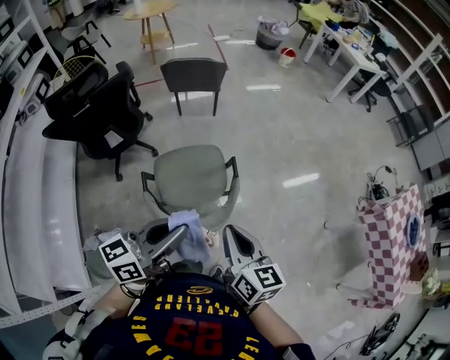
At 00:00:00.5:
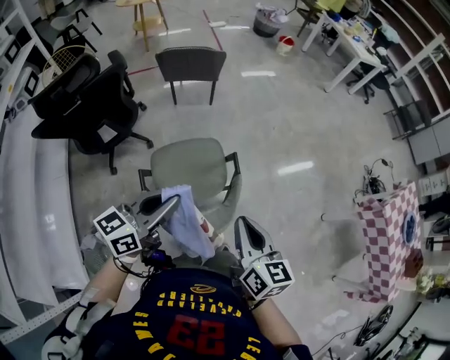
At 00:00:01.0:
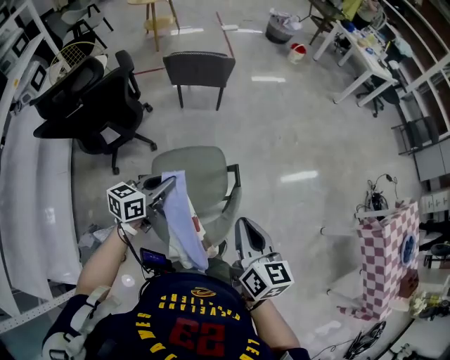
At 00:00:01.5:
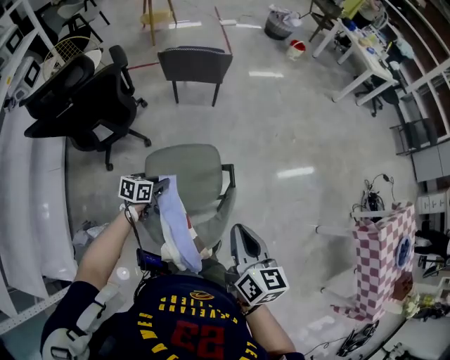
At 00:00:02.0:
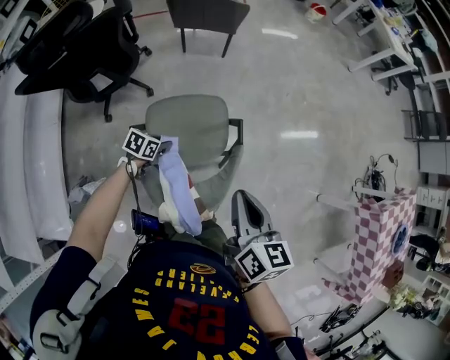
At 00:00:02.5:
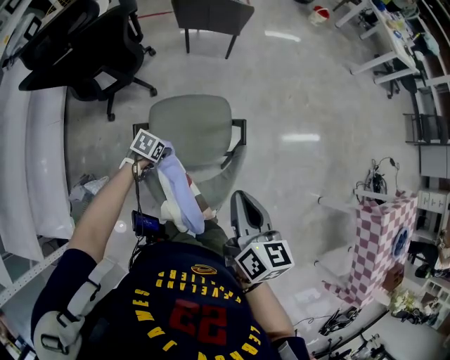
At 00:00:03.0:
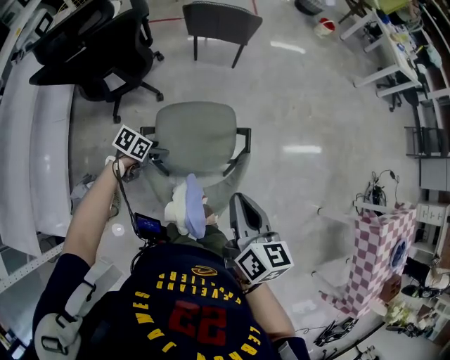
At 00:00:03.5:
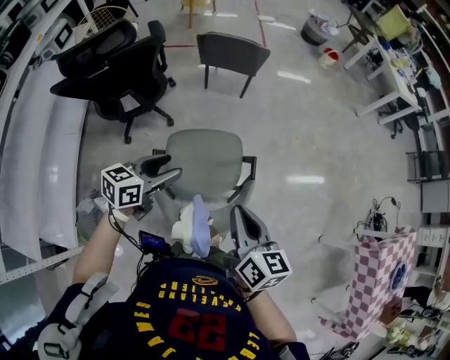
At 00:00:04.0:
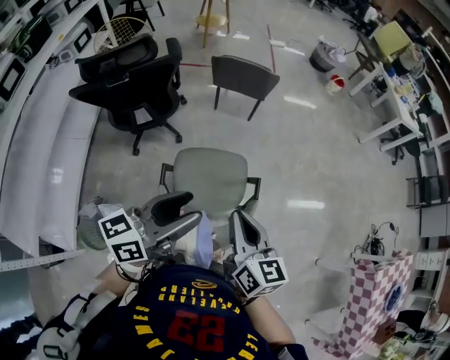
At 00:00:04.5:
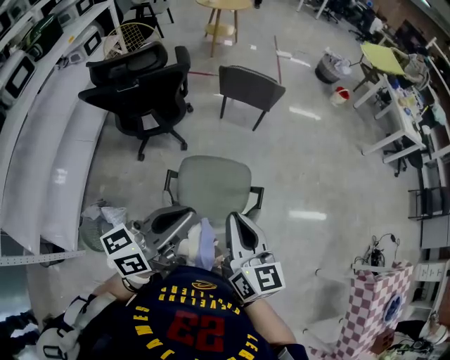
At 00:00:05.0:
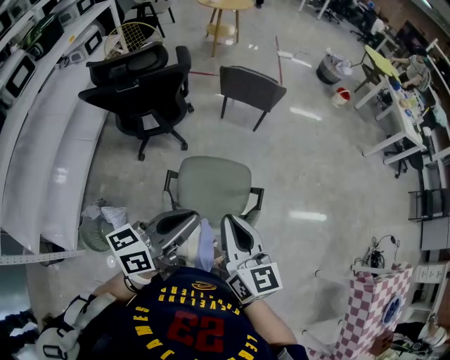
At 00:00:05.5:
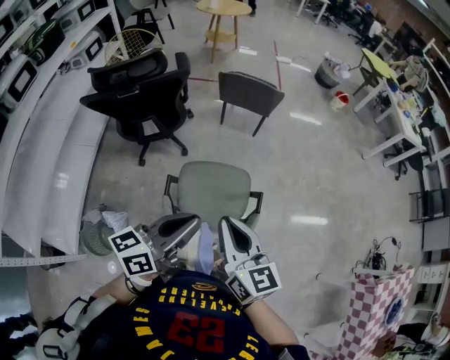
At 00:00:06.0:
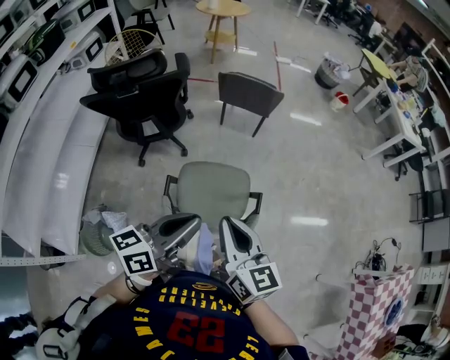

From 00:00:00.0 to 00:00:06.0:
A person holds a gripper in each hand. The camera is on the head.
From 00:00:00.0 to 00:00:02.0: The right gripper travels forward by some 10 cm; the left gripper heads downward and forward, covering about 50 cm, and angles its fingers downward, by approximately 50 degrees.
From 00:00:02.0 to 00:00:04.0: The right gripper moves to the left and upward, roughly 10 cm; the left gripper travels upward by some 40 cm, tips its fingers upward by some 50 degrees, and opens its fingers.
From 00:00:04.0 to 00:00:06.0: The left gripper closes its fingers.

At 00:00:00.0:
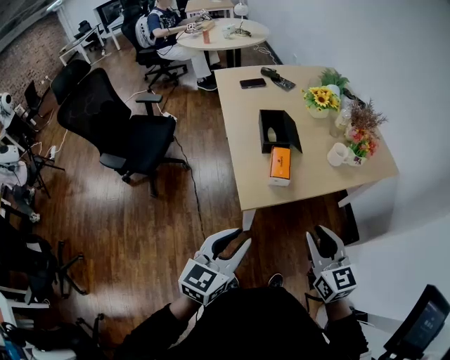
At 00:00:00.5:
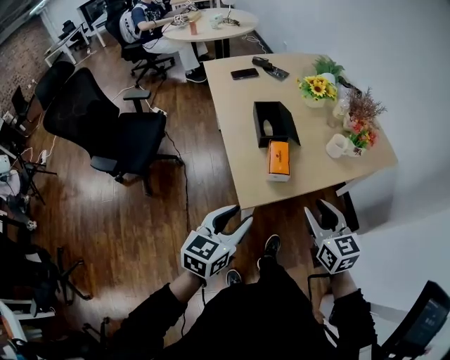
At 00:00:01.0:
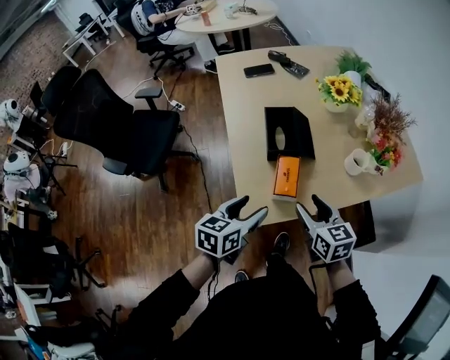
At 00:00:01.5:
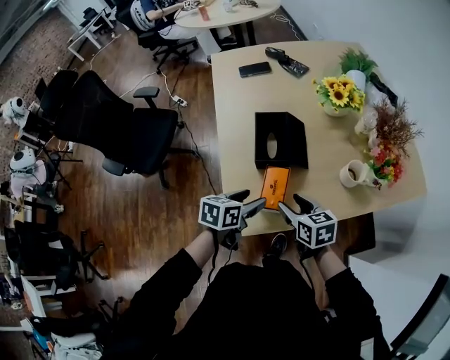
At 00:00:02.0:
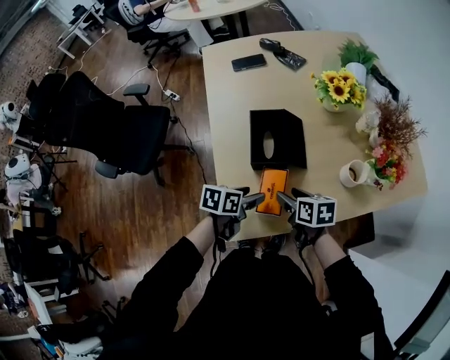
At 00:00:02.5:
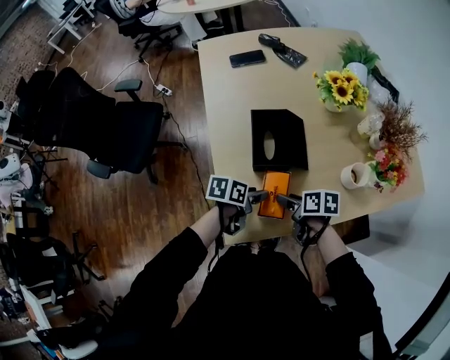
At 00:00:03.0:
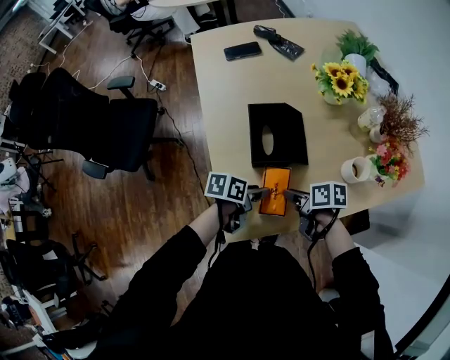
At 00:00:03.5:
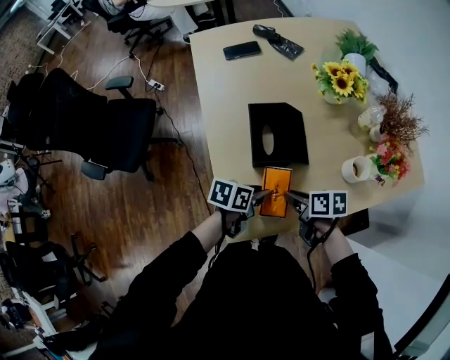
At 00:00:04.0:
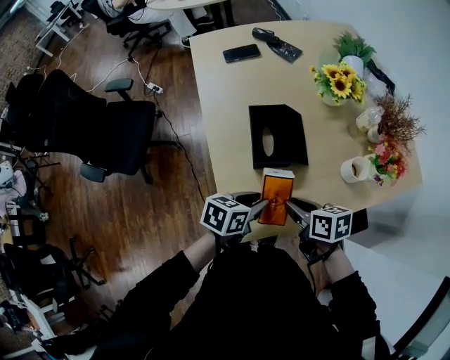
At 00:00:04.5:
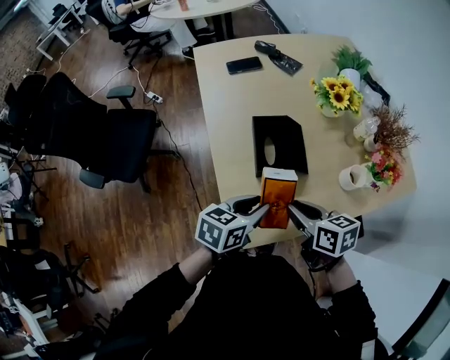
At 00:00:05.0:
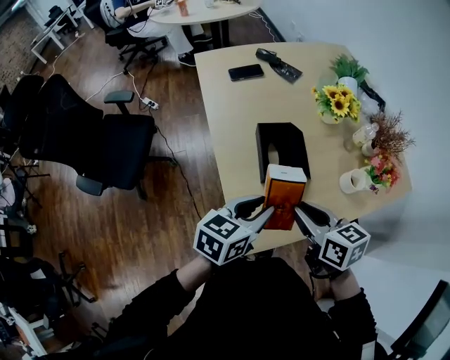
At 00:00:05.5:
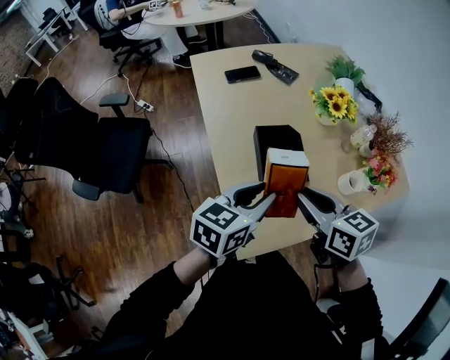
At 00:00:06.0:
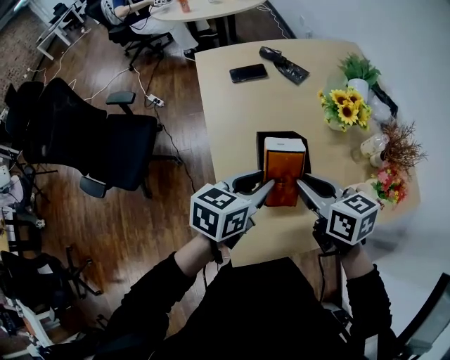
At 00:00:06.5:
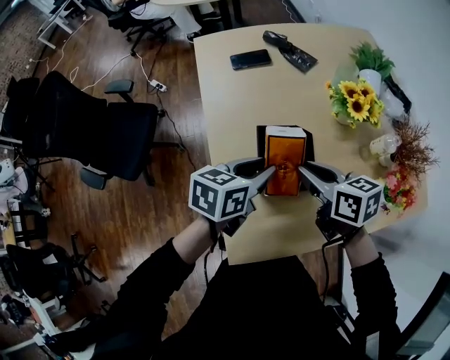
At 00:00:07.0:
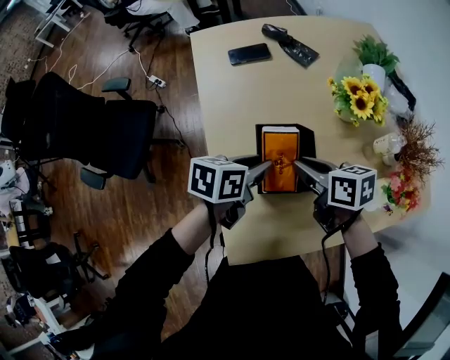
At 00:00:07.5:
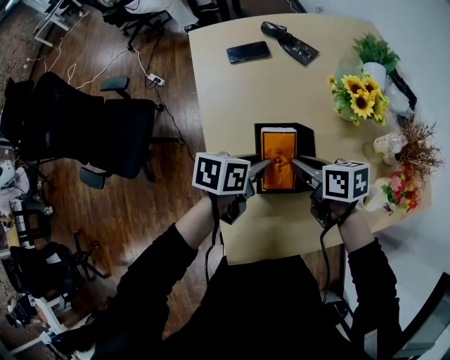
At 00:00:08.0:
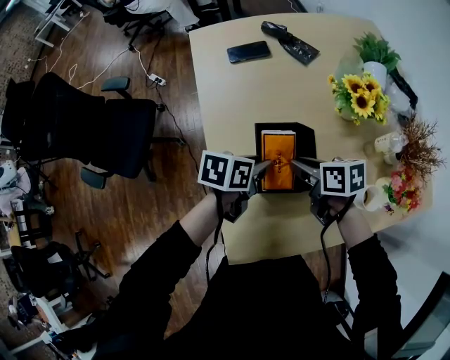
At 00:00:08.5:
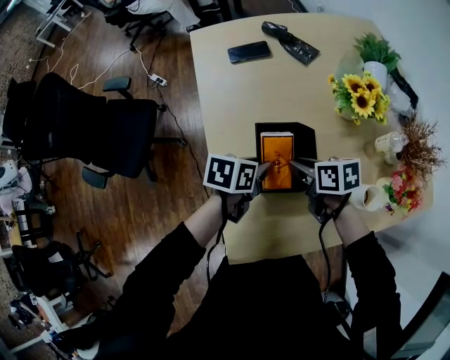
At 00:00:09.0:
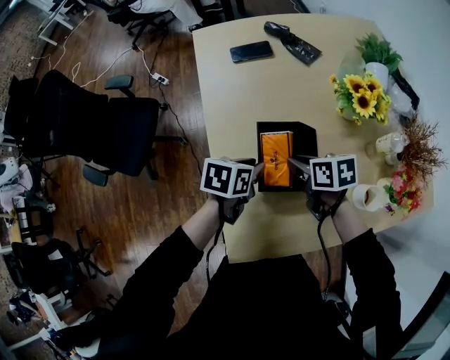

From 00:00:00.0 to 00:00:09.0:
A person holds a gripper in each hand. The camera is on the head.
From 00:00:00.0 to 00:00:02.0: The two grippers go approximately 40 cm forward and downward. The right gripper turns by about 50 degrees, and opens up; the left gripper swivels about 50 degrees, and opens up.
From 00:00:02.0 to 00:00:04.5: Both grippers travel together upward, some 10 cm. The right gripper closes, while the left gripper closes its fingers.
From 00:00:04.5 to 00:00:07.0: The grippers both shift forward by about 20 cm.
From 00:00:07.0 to 00:00:09.0: Both grippers move downward, some 5 cm.

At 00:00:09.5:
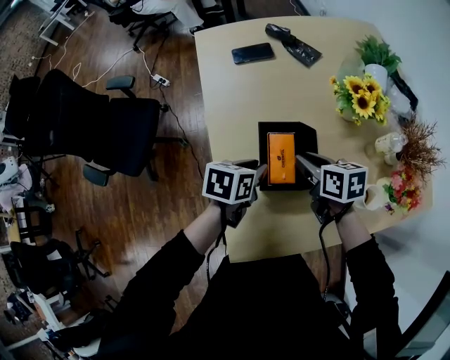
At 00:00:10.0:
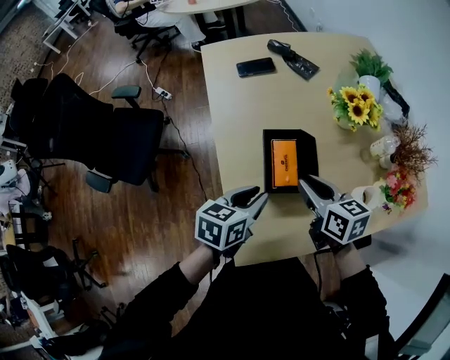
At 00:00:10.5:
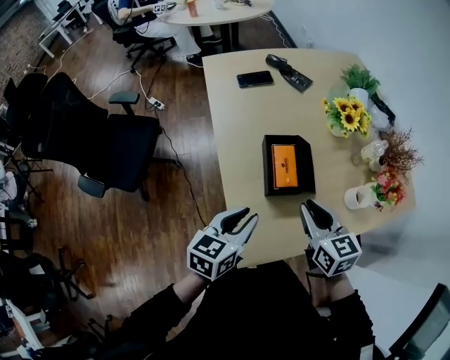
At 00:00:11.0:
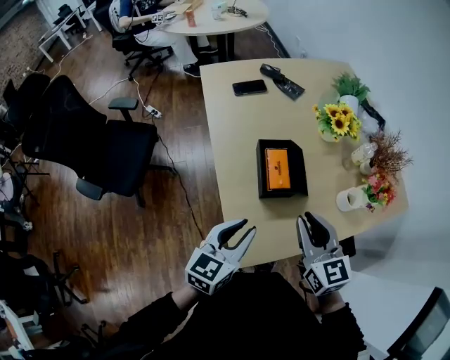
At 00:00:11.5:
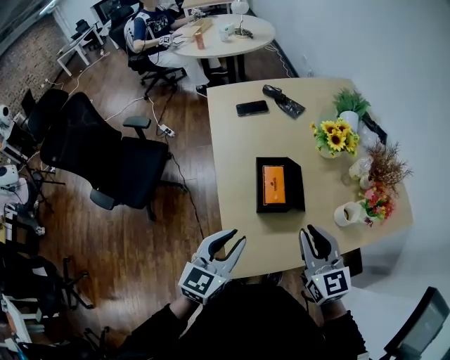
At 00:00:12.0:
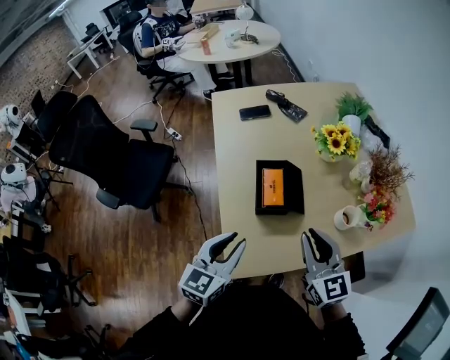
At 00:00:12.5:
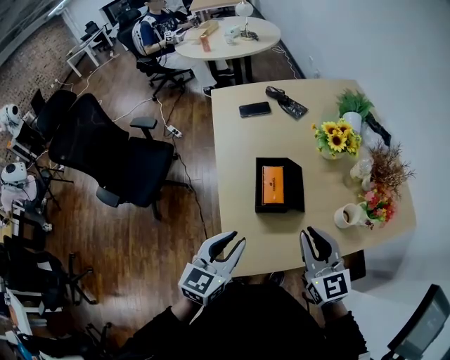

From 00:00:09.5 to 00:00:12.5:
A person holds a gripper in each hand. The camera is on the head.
From 00:00:09.5 to 00:00:11.0: The two grippers go approximately 20 cm backward and upward. The left gripper turns by approximately 40 degrees. Meanwhile the right gripper changes its angle by approximately 40 degrees.
From 00:00:11.0 to 00:00:12.5: The right gripper travels to the right by about 5 cm.

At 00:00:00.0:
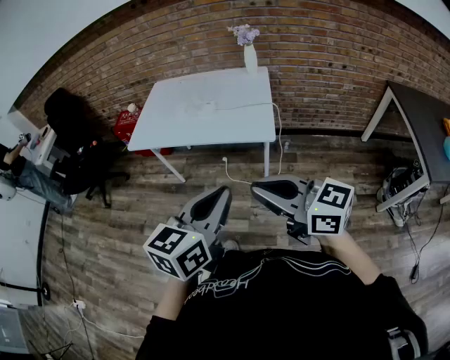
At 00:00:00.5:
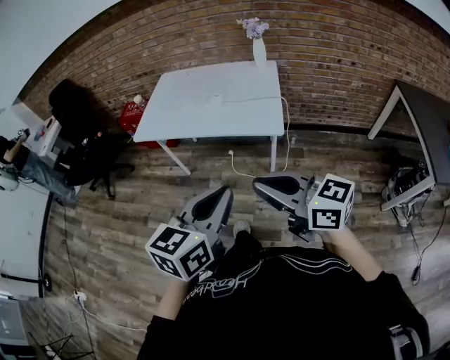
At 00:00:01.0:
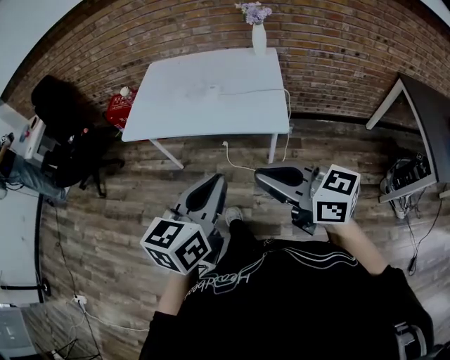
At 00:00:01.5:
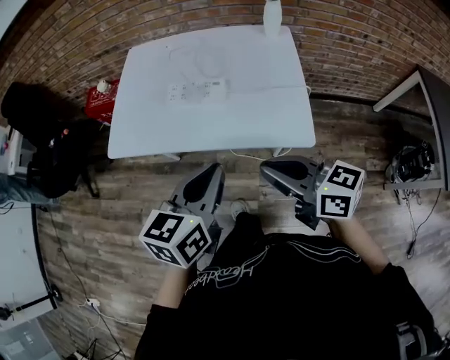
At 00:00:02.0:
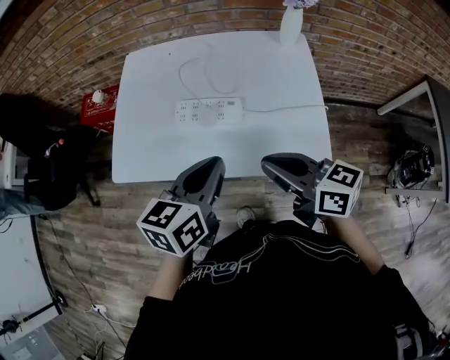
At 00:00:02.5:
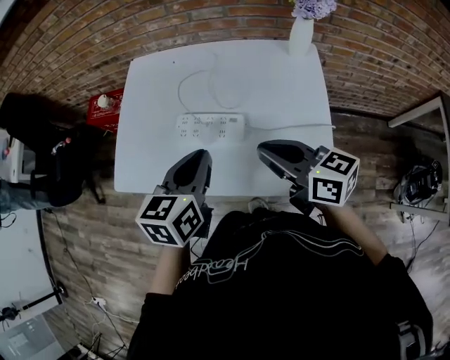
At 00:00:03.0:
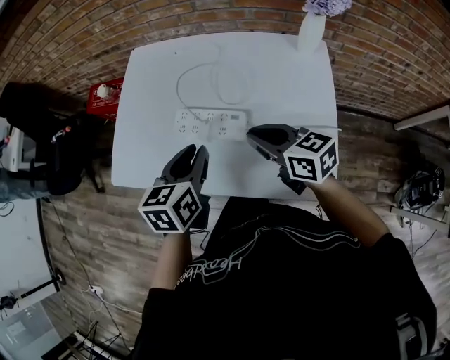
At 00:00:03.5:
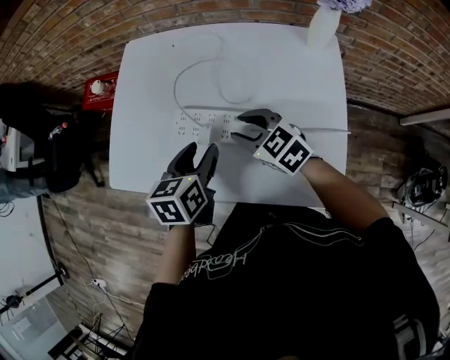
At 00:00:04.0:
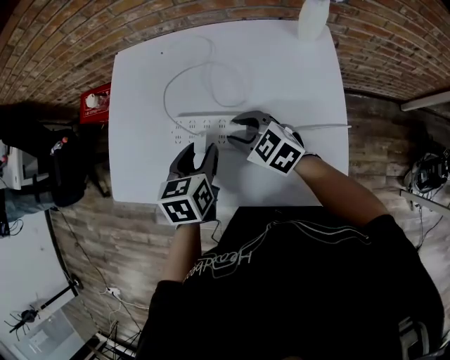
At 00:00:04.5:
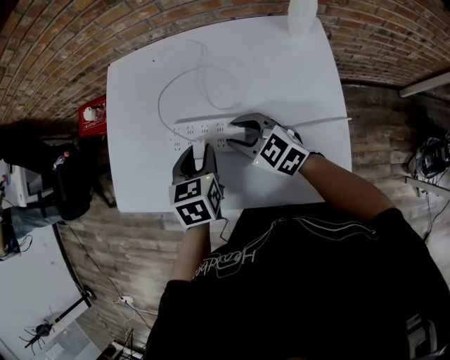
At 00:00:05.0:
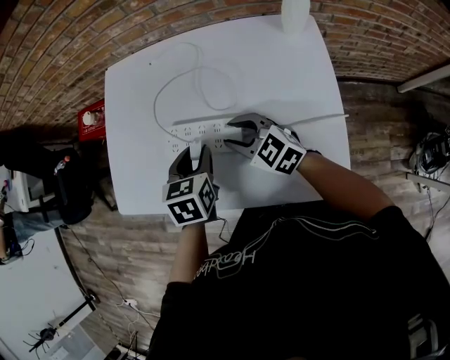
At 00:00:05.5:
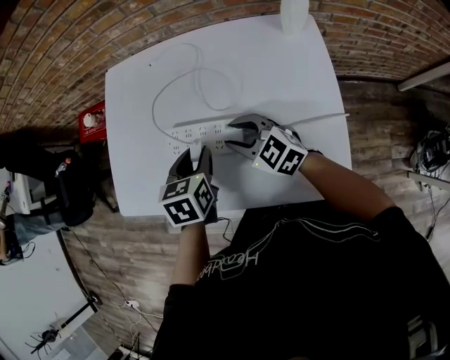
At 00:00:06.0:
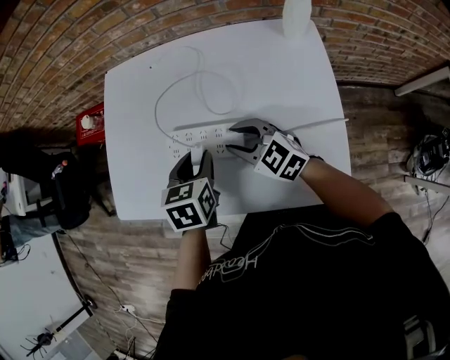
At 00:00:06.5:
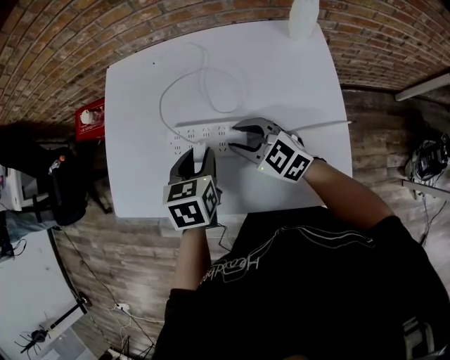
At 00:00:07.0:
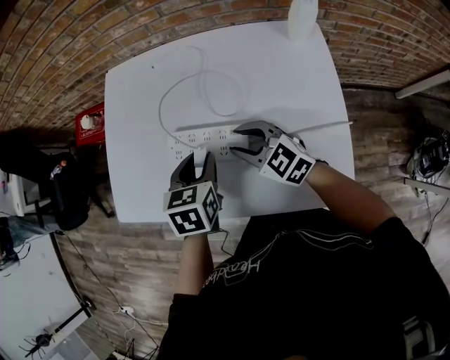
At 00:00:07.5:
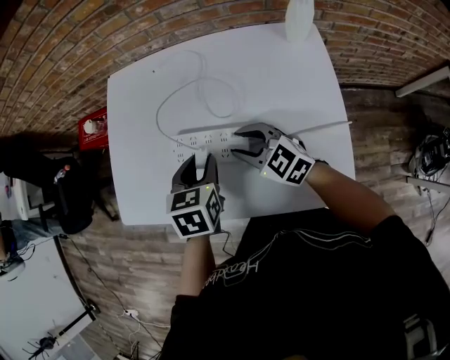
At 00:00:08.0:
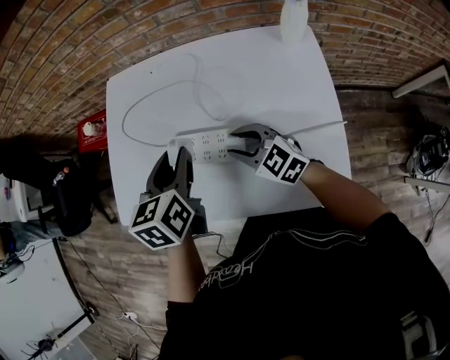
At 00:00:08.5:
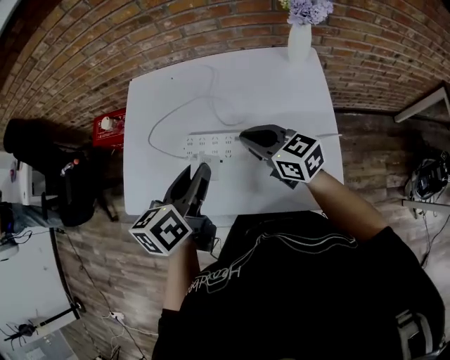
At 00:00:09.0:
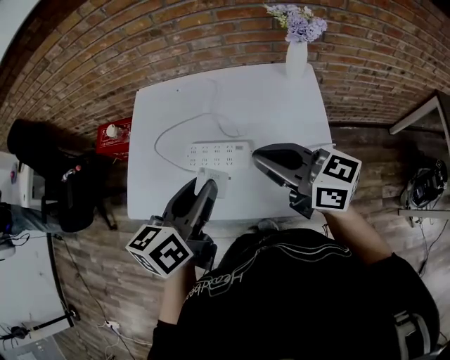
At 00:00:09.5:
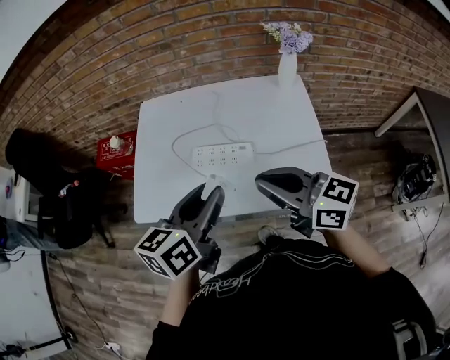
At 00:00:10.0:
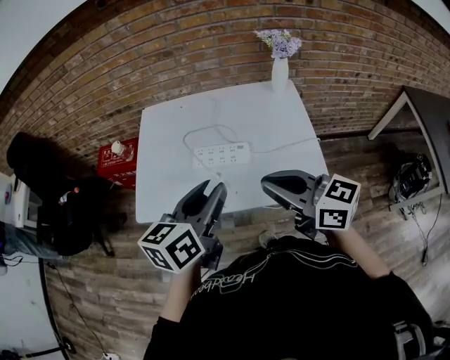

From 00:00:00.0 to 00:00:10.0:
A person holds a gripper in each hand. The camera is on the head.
From 00:00:00.0 to 00:00:02.0: The two grippers travel together, forward, about 50 cm. The right gripper swivels some 20 degrees.
From 00:00:02.0 to 00:00:04.0: Both grippers travel together forward and downward, approximately 25 cm. The right gripper rotates about 40 degrees, and opens. Meanwhile the left gripper swivels some 30 degrees, and opens.
From 00:00:04.0 to 00:00:06.0: There are only small adjustments of the grippers.
From 00:00:06.0 to 00:00:08.0: The left gripper is displaced upward by about 10 cm.
From 00:00:08.0 to 00:00:10.0: The left gripper moves backward and upward, roughly 25 cm, and turns by some 30 degrees, while the right gripper goes roughly 35 cm upward and backward, changes its angle by about 40 degrees, and closes up.
